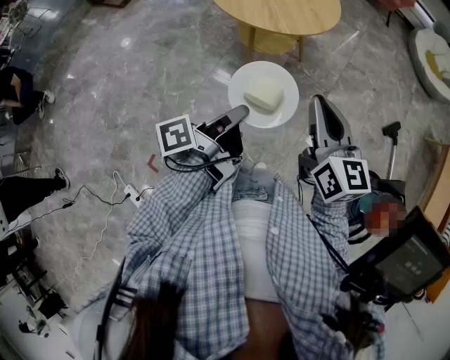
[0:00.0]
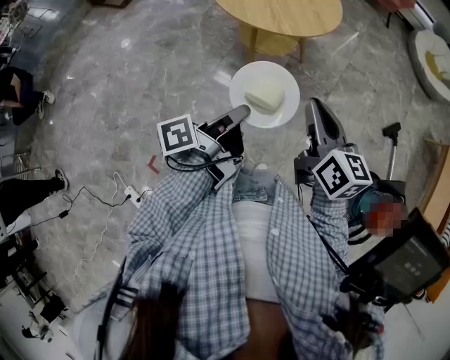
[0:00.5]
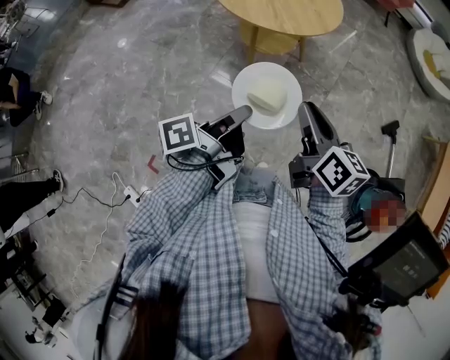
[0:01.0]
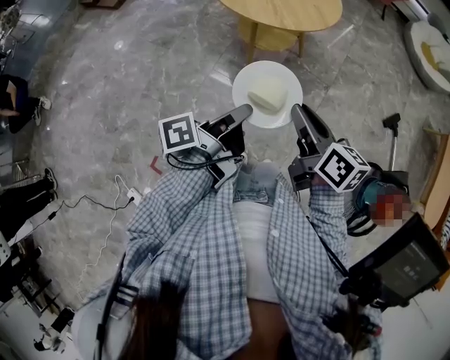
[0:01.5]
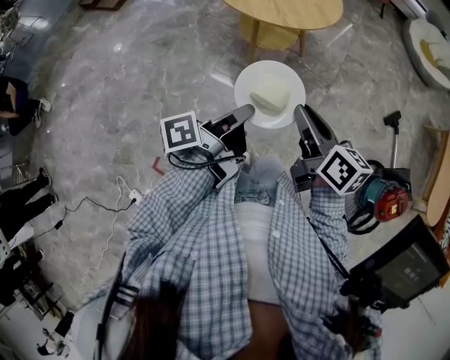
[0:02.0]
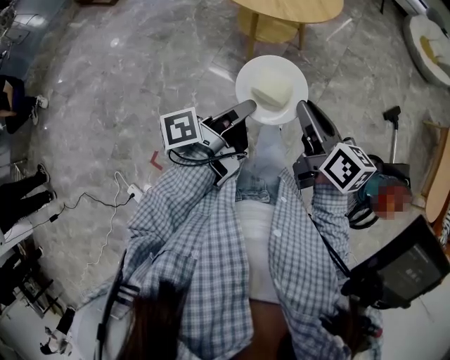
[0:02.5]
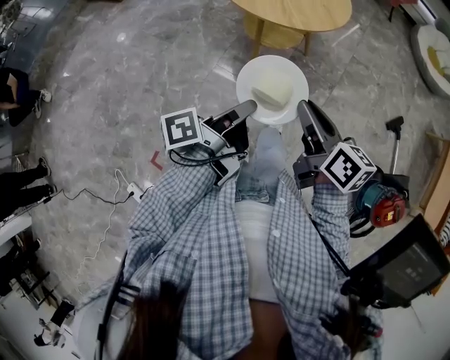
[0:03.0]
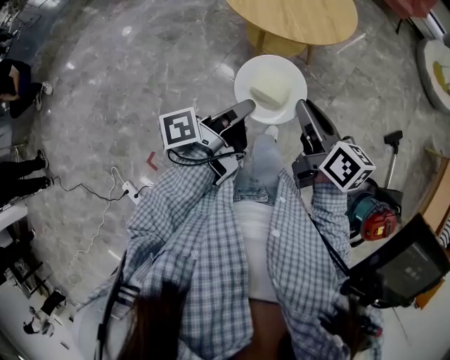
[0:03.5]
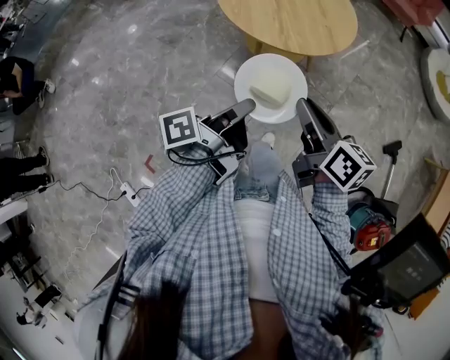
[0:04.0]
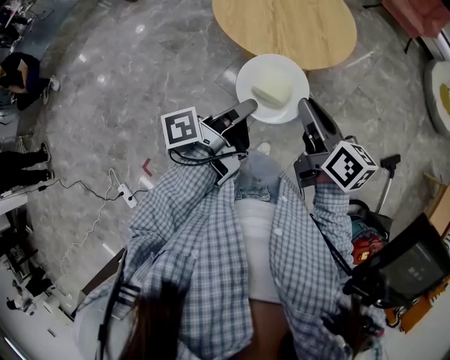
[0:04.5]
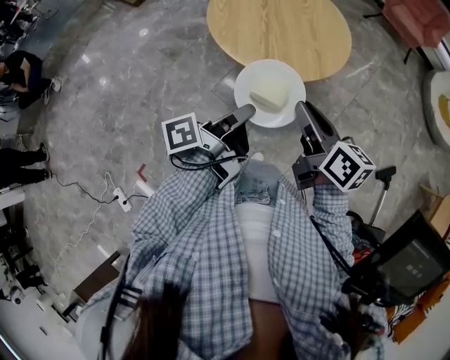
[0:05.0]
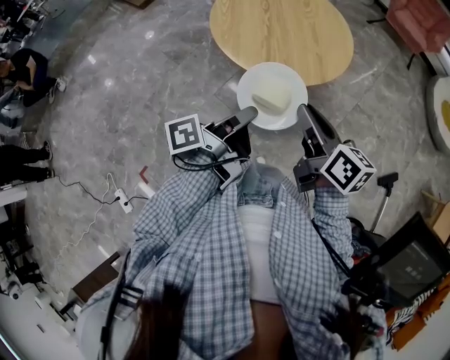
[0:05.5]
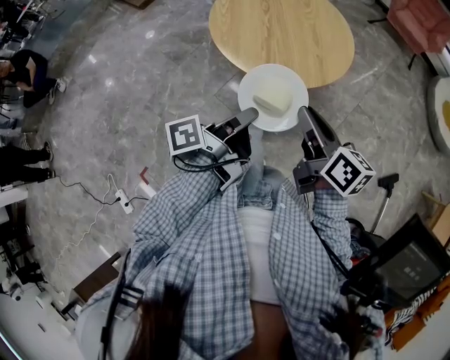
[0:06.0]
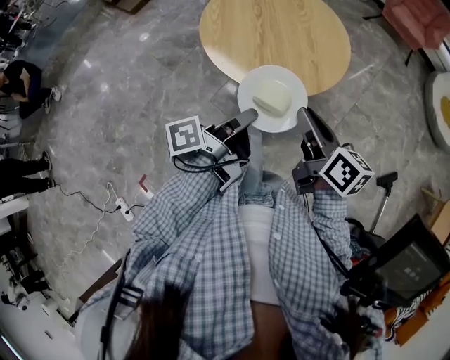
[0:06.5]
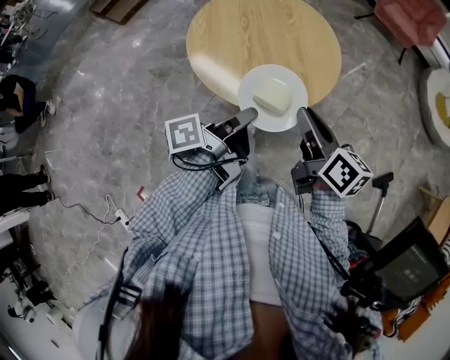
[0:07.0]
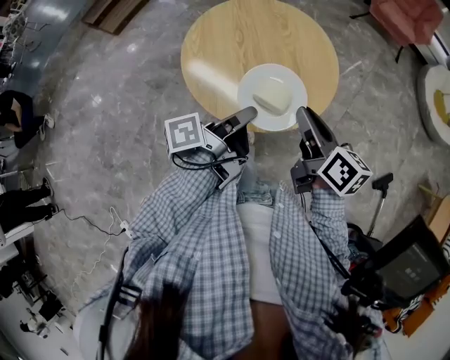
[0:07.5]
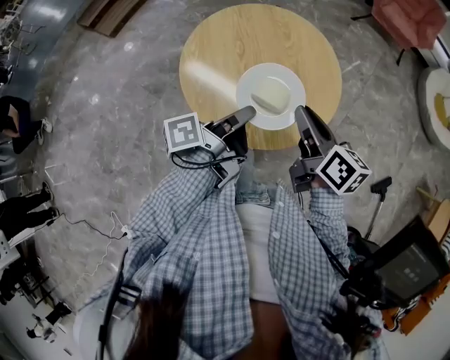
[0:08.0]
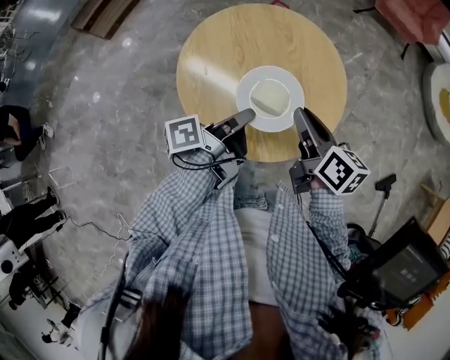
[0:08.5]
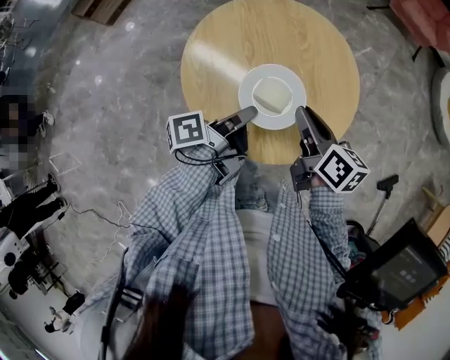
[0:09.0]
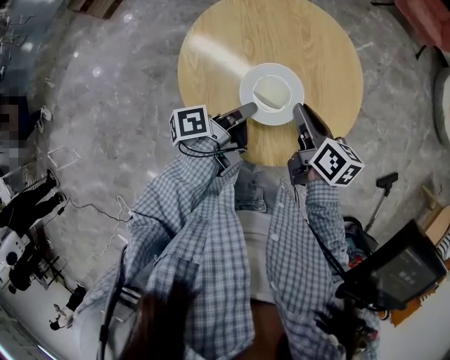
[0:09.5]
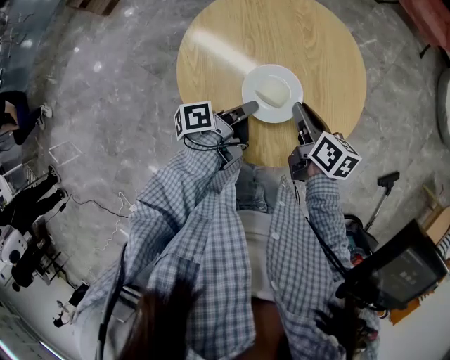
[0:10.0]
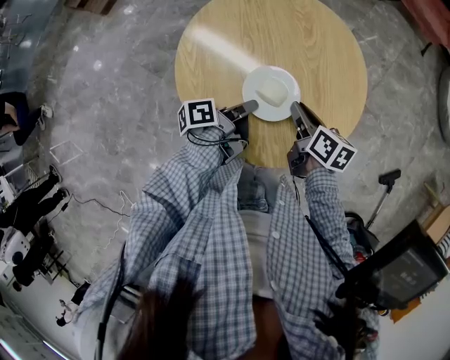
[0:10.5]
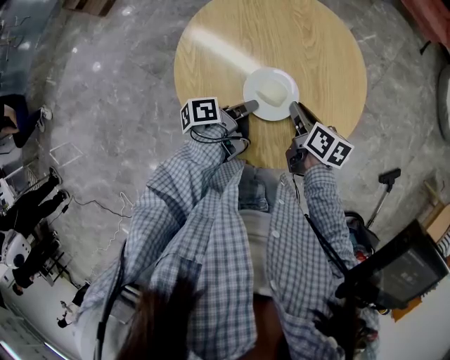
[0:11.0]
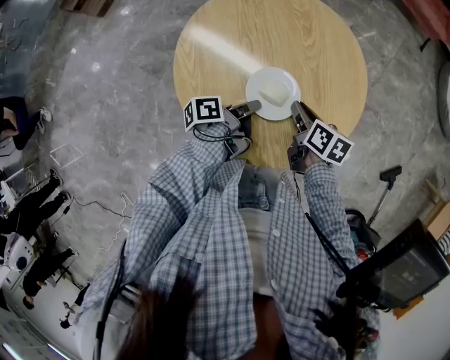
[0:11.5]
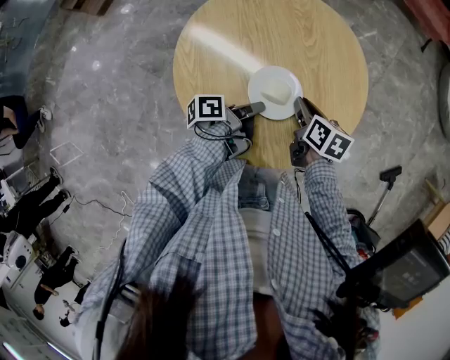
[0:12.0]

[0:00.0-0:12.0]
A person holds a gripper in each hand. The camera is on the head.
0:00.0 to 0:02.0: The right gripper changes place by roughly 10 cm, and swivels some 30 degrees.
0:02.0 to 0:04.0: The right gripper moves about 15 cm.
0:04.0 to 0:06.0: The right gripper changes place by some 15 cm.
0:06.0 to 0:08.0: The right gripper ends up some 20 cm from where it was.
0:08.0 to 0:10.0: The right gripper travels downward by approximately 15 cm.
0:10.0 to 0:12.0: The right gripper goes about 5 cm downward.

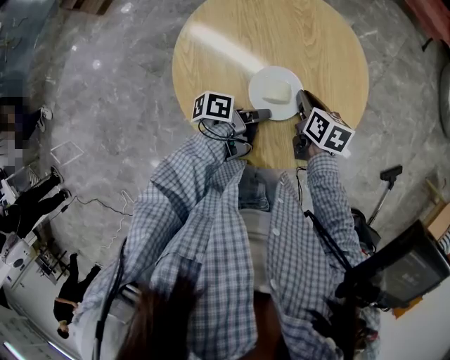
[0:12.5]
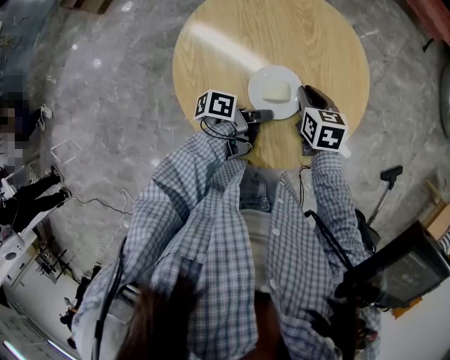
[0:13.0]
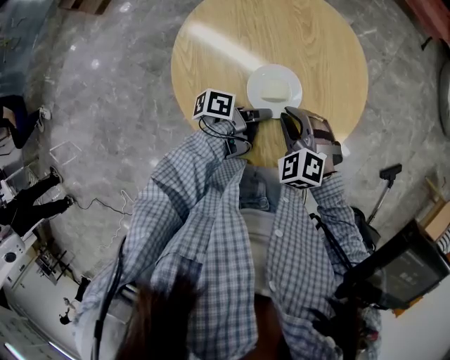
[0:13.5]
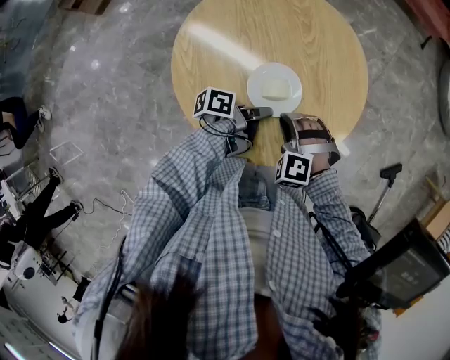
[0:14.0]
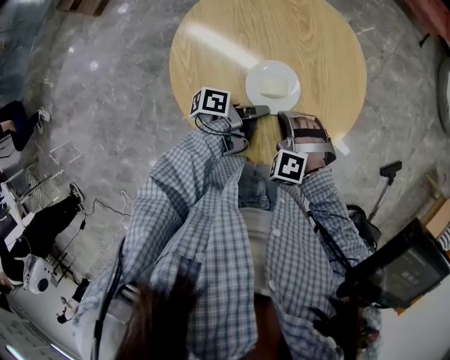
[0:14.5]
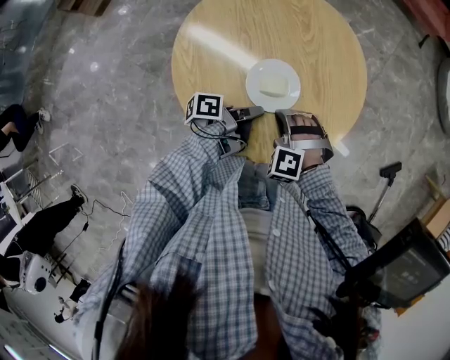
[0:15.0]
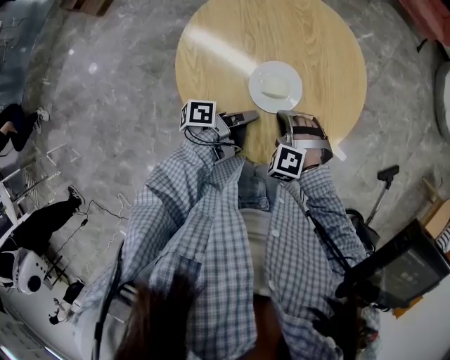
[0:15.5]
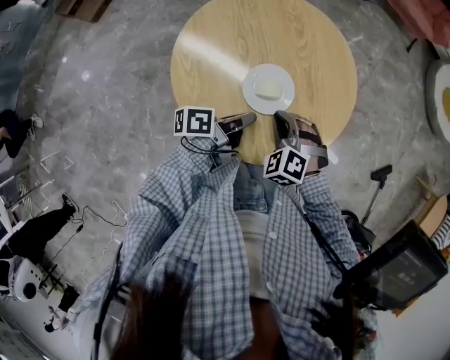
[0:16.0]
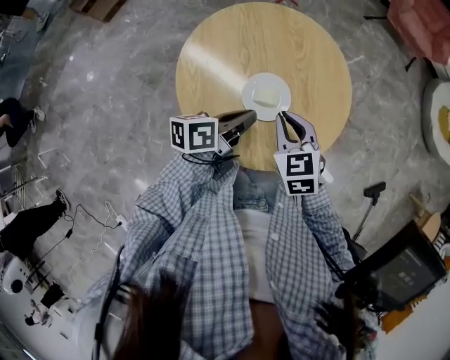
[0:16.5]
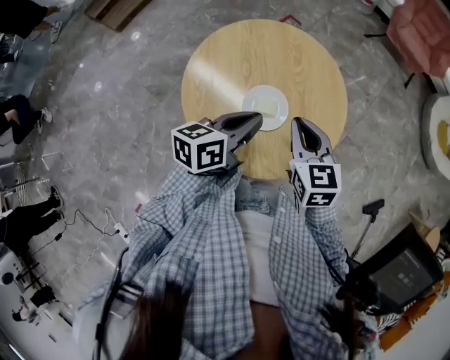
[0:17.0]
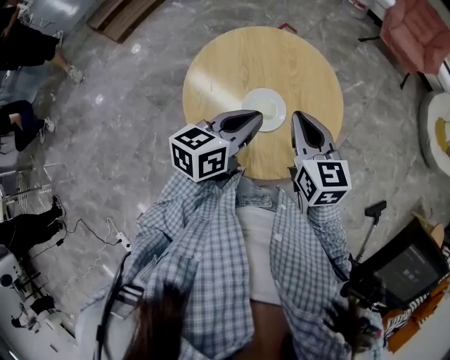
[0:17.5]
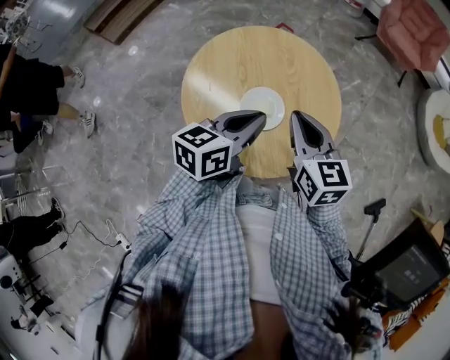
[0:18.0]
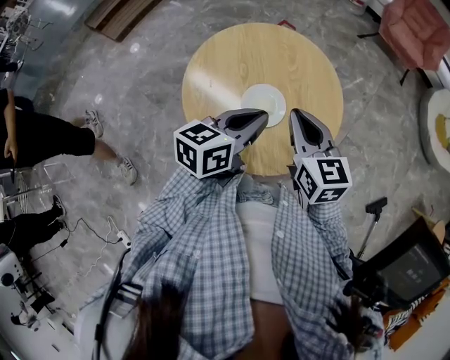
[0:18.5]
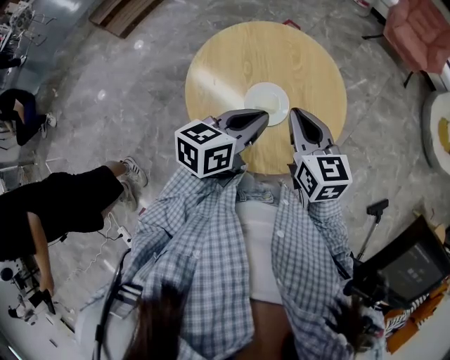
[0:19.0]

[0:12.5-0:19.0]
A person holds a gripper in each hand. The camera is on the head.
0:12.5 to 0:14.5: The right gripper moves approximately 10 cm, and twists some 100 degrees counterclockwise, seen from behind.
0:14.5 to 0:17.0: The right gripper heads upward, covering approximately 15 cm, and rotates around the line of its fingers by some 70 degrees, clockwise from behind.

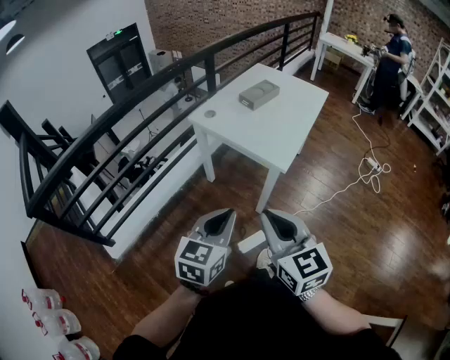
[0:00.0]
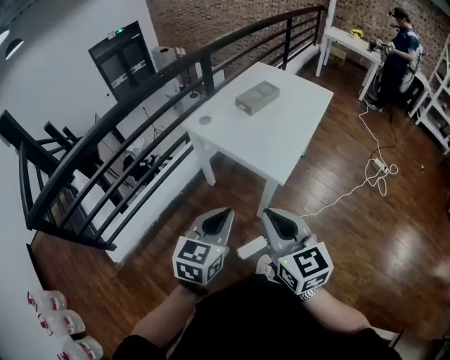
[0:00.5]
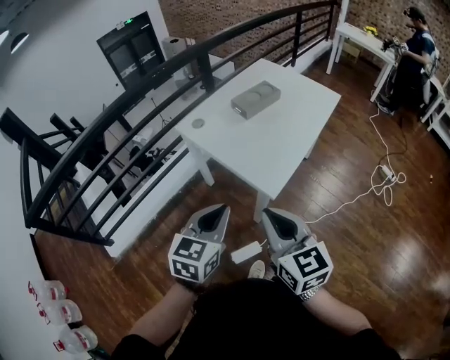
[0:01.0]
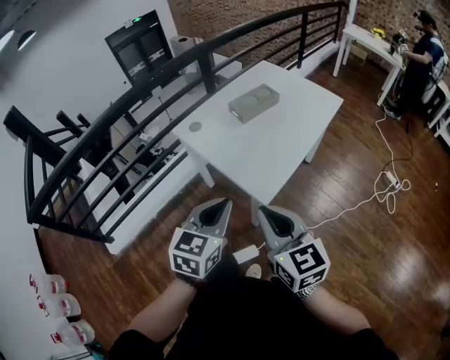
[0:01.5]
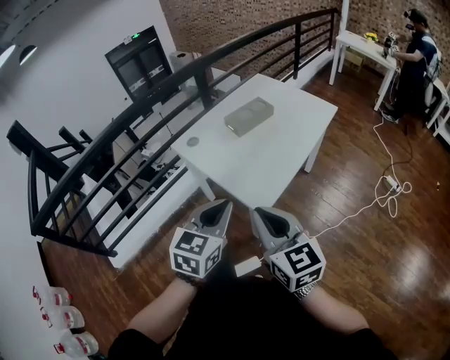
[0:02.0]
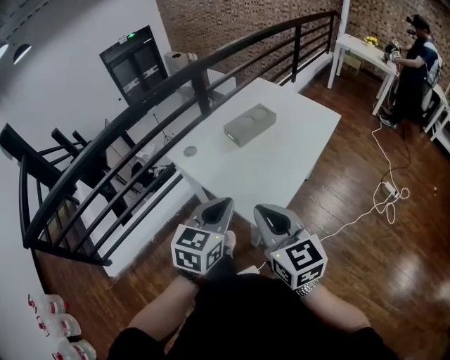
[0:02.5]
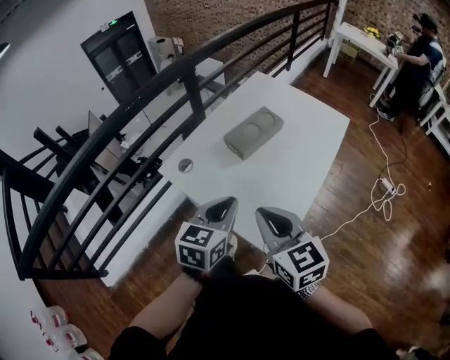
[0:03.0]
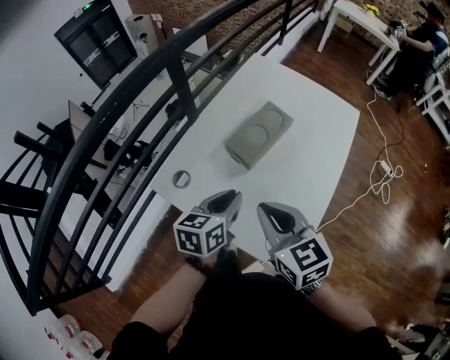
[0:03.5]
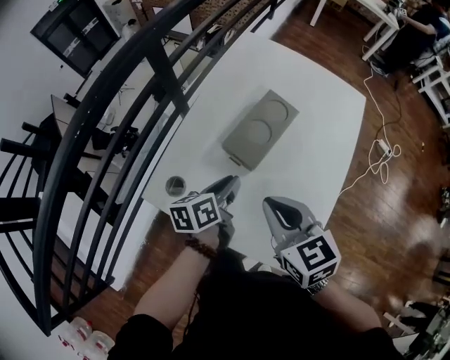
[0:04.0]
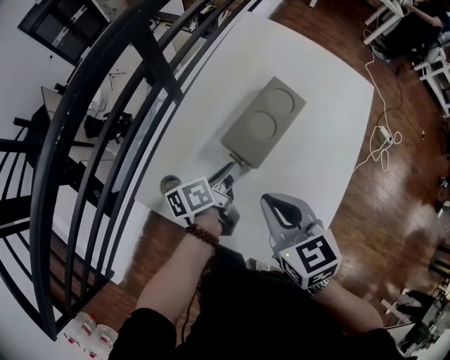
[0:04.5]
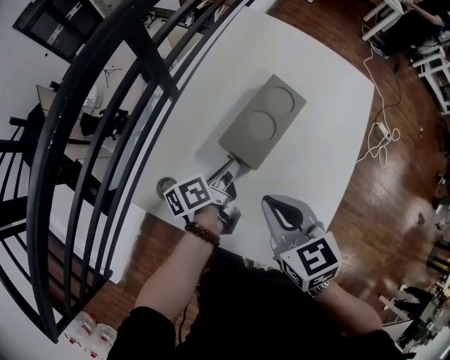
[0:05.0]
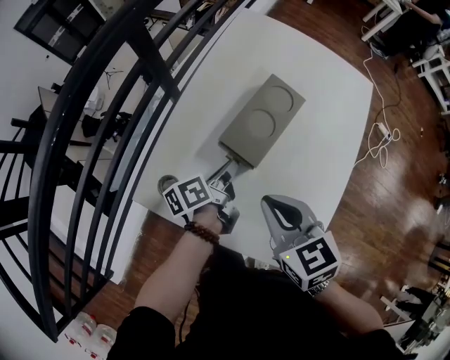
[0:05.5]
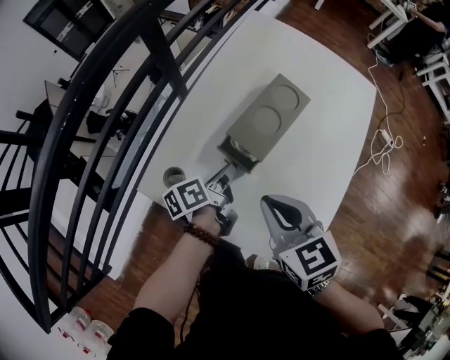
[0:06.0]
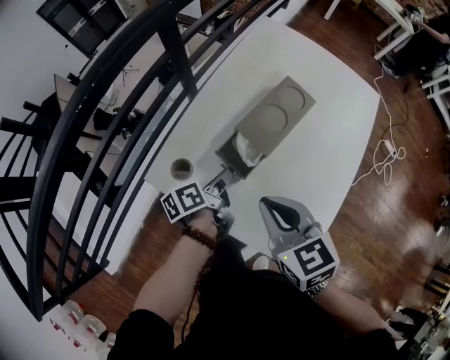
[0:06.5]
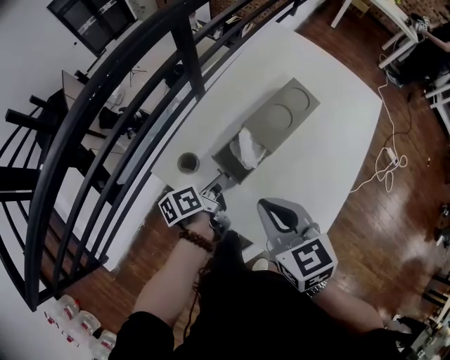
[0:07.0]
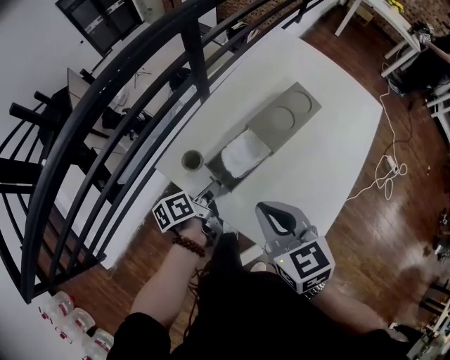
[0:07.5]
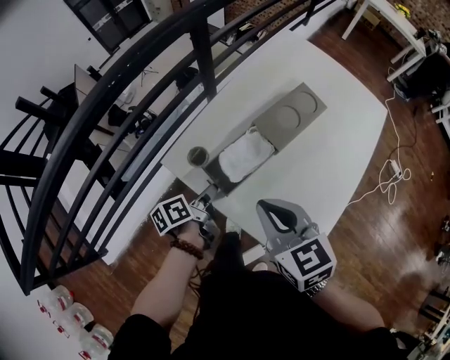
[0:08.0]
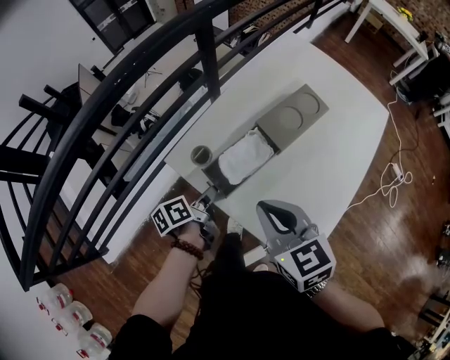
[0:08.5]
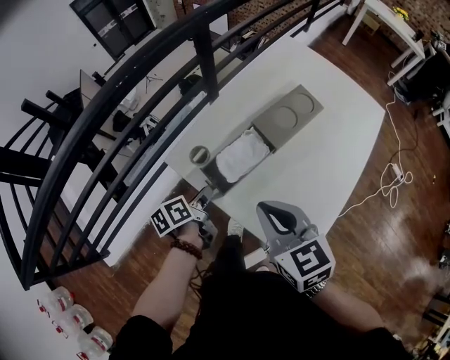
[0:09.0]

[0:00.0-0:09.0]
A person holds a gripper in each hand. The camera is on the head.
0:00.0 to 0:02.0: The two grippers go some 25 cm forward and to the right.
0:02.0 to 0:04.5: Both grippers move forward and downward, about 40 cm. The left gripper twists some 70 degrees counterclockwise, seen from behind, and opens. The right gripper turns by some 30 degrees.
0:04.5 to 0:07.0: The right gripper travels backward by about 5 cm. The left gripper moves backward and to the left, about 10 cm.
0:07.0 to 0:09.0: The left gripper travels to the left and backward by some 10 cm.
